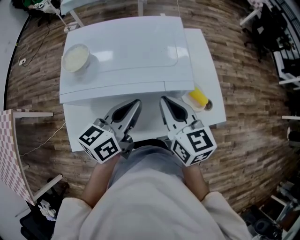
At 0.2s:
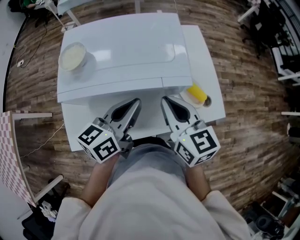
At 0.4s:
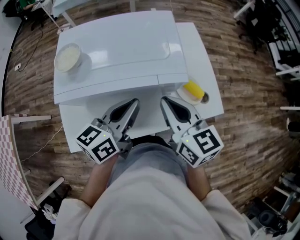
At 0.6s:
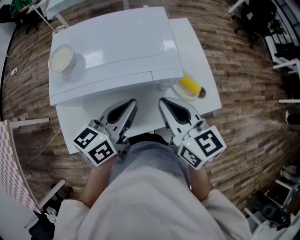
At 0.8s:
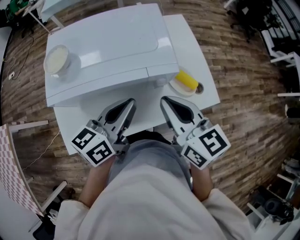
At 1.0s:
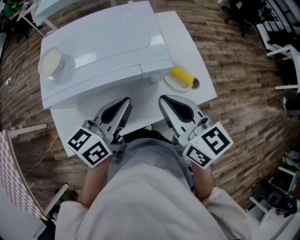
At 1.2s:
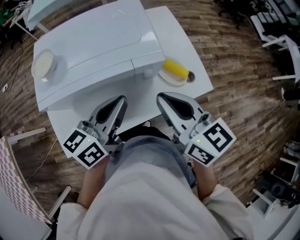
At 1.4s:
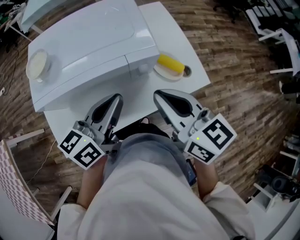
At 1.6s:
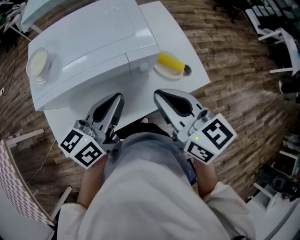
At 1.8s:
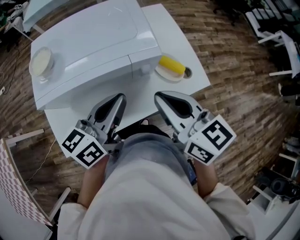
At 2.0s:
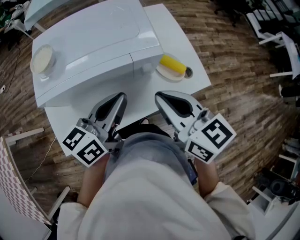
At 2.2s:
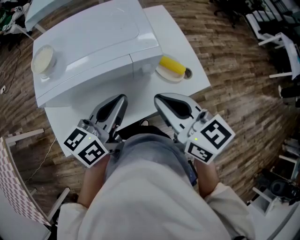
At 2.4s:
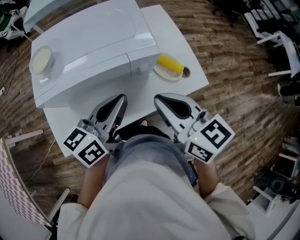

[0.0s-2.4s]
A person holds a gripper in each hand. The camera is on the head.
0.0s to 1.2s: The left gripper moves about 5 cm; the right gripper moves backward and to the right, approximately 10 cm.
1.2s to 2.4s: The grippers stay close to where they were, moving slightly.

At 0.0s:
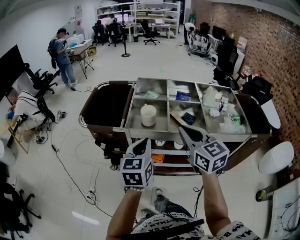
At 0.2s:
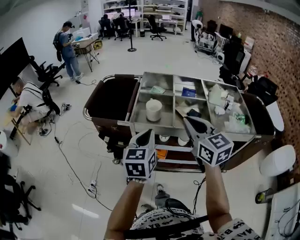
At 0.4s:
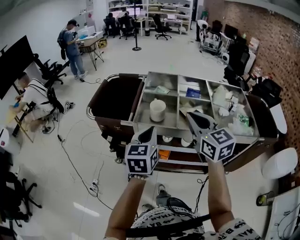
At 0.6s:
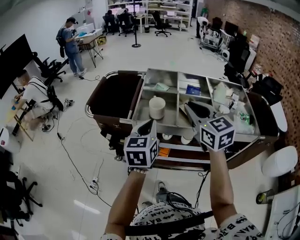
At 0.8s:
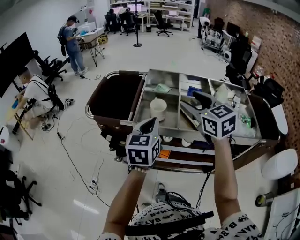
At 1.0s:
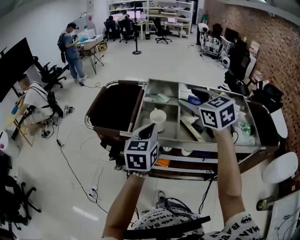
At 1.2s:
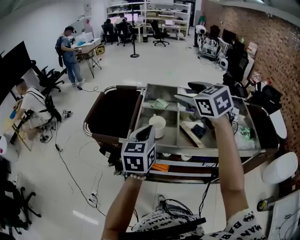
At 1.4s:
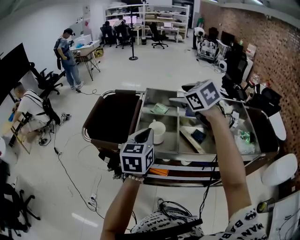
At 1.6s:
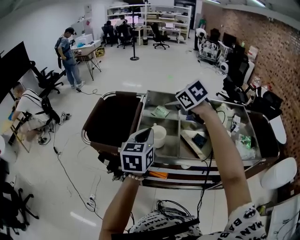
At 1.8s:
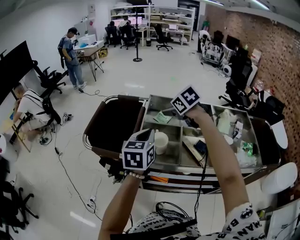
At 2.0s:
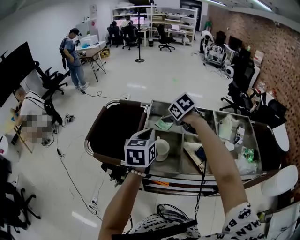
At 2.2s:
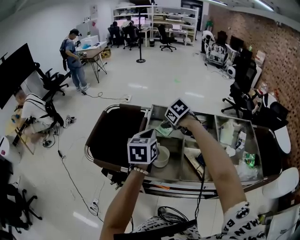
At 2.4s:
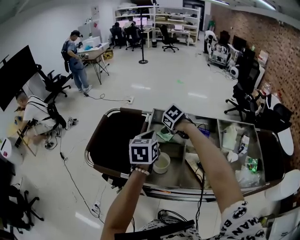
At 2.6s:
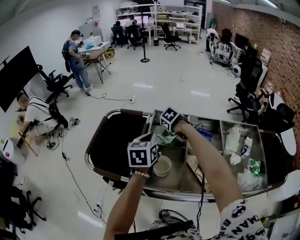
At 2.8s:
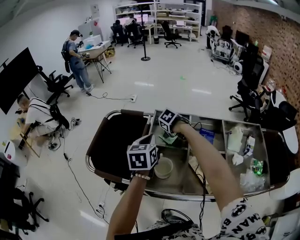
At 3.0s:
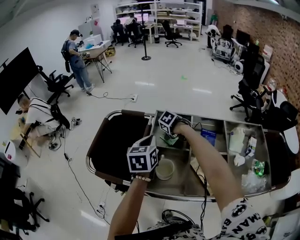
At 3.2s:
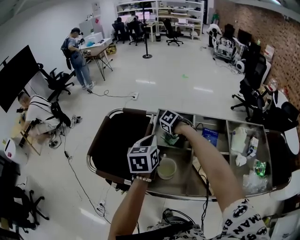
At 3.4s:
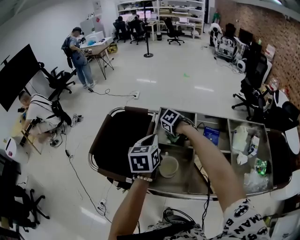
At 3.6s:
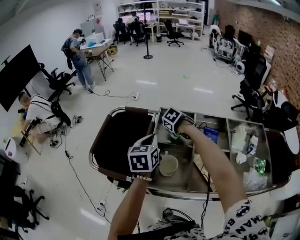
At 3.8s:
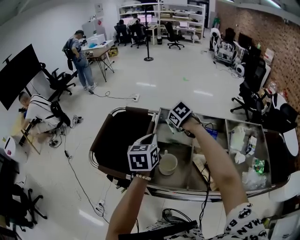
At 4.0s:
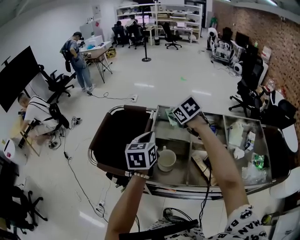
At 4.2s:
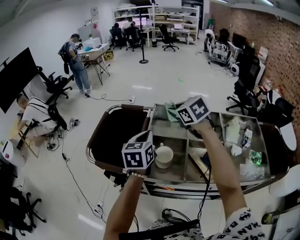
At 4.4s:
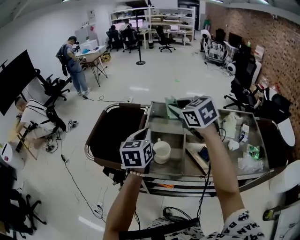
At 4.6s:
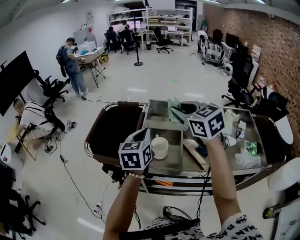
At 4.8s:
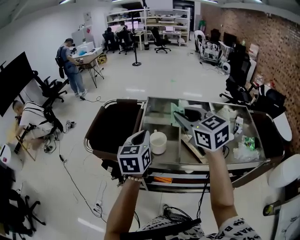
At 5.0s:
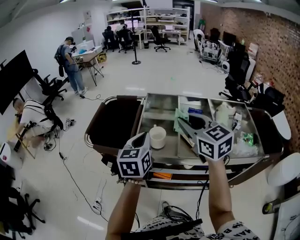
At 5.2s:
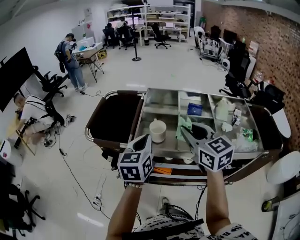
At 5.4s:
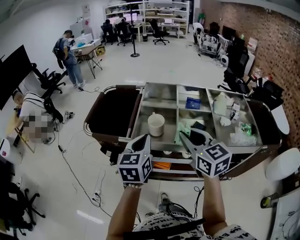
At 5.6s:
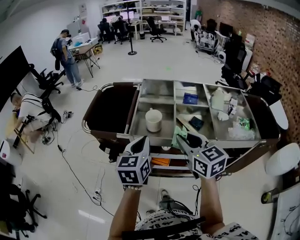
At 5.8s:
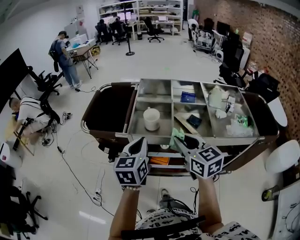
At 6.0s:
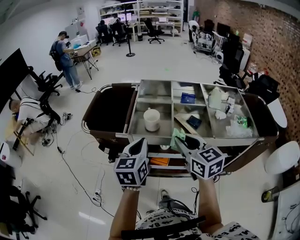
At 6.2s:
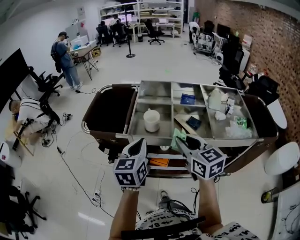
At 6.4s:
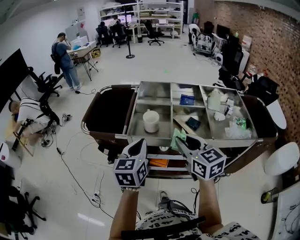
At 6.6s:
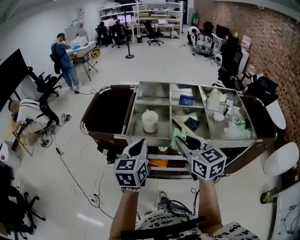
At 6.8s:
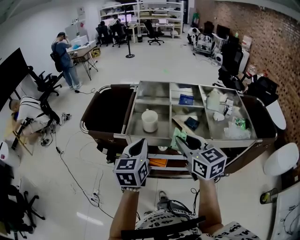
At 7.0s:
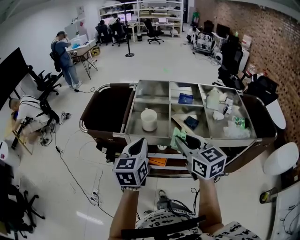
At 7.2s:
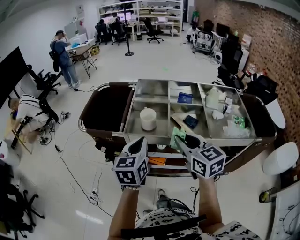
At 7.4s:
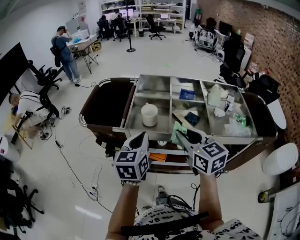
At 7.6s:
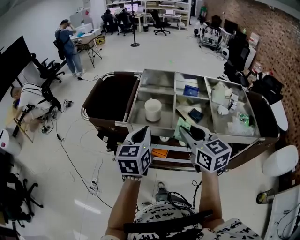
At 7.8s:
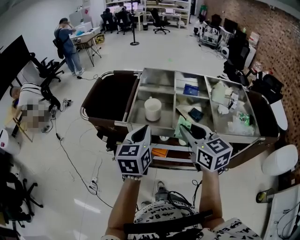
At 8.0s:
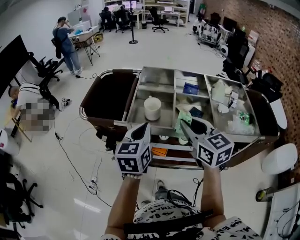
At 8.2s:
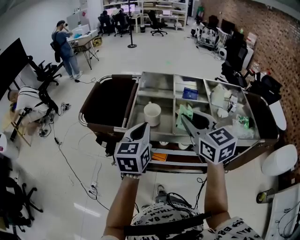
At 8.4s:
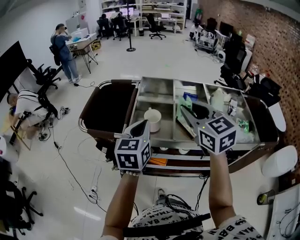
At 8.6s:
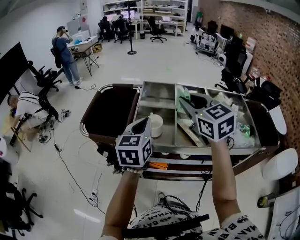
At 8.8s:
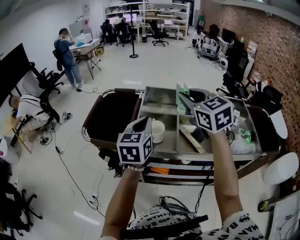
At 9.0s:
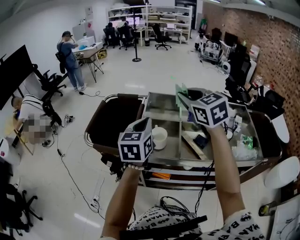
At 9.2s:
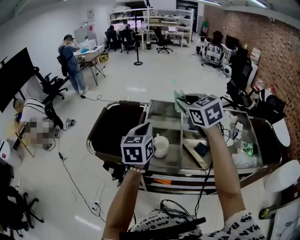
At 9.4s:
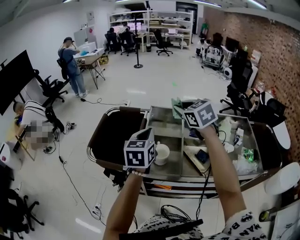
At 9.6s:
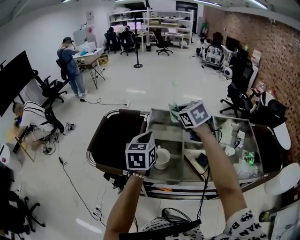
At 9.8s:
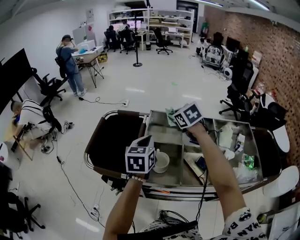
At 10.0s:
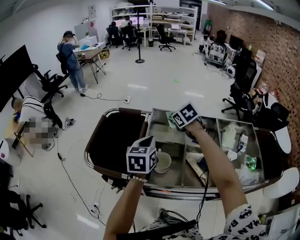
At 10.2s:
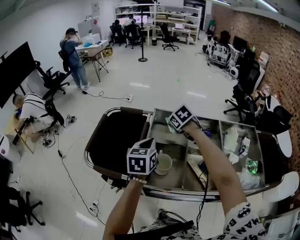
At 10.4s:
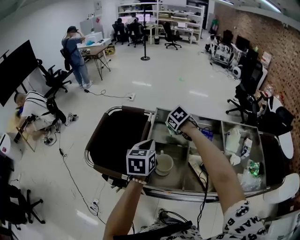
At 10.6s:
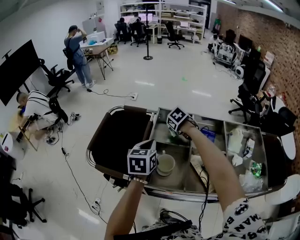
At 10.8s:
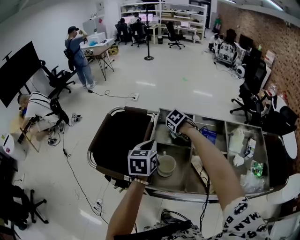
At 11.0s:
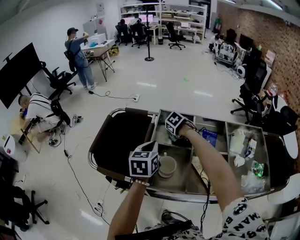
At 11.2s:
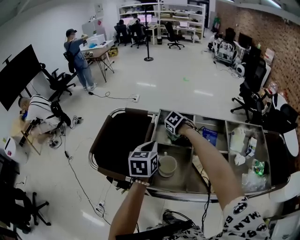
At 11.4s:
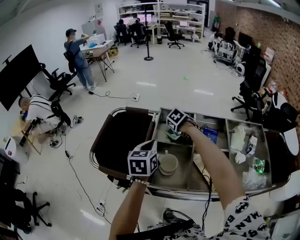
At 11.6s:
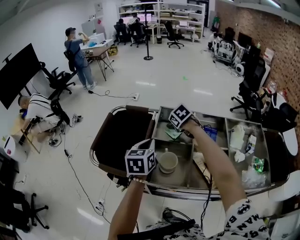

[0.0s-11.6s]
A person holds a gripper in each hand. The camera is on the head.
0.0s to 1.4s: The right gripper travels forward by approximately 25 cm, changes its angle by about 30 degrees, and opens, while the left gripper travels forward by some 15 cm.
1.4s to 2.8s: The left gripper changes place by roughly 15 cm, while the right gripper travels downward by about 25 cm, and tilts its fingers some 40 degrees downward.
2.8s to 4.4s: The right gripper travels upward by approximately 25 cm, points its fingers some 50 degrees further upward, and closes up; the left gripper changes place by about 5 cm.
4.4s to 5.8s: Both grippers move backward, roughly 25 cm. The right gripper turns by approximately 20 degrees.
5.8s to 7.2s: There are only small adjustments of the grippers.
7.2s to 8.8s: The left gripper goes about 15 cm forward and upward. The right gripper is displaced forward and upward by approximately 20 cm.
8.8s to 10.2s: The right gripper heads forward and downward, covering about 30 cm, and tilts its fingers roughly 40 degrees downward; the left gripper moves forward and downward, about 10 cm.
10.2s to 11.6s: The right gripper opens up.

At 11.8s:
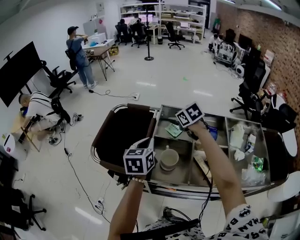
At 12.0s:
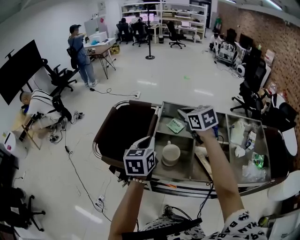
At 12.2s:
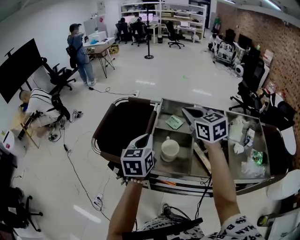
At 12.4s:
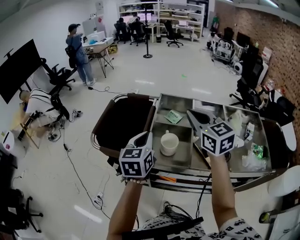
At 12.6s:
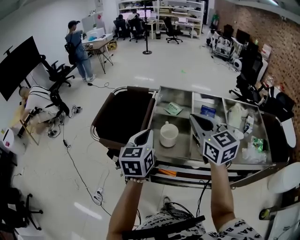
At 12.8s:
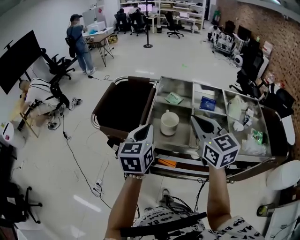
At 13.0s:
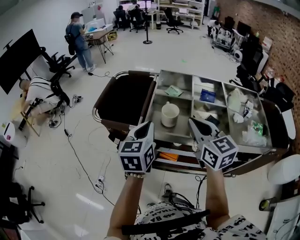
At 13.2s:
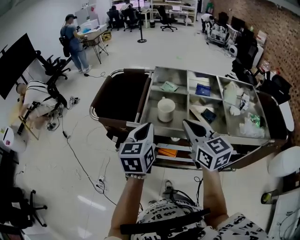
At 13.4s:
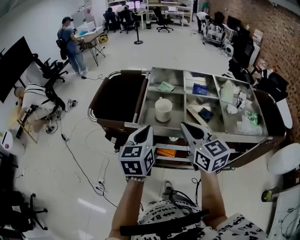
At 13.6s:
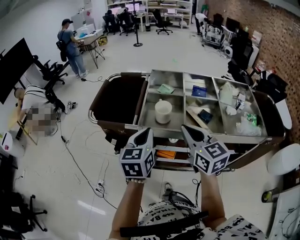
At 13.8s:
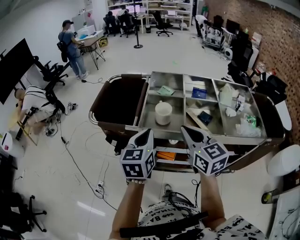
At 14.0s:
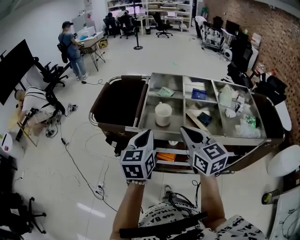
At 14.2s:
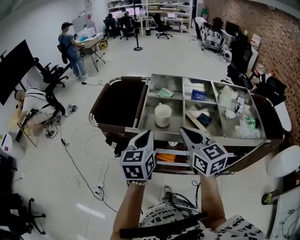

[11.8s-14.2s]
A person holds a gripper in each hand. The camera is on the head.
11.8s to 13.0s: The left gripper moves backward, some 15 cm. The right gripper heads backward, covering approximately 30 cm, points its fingers roughly 40 degrees further upward, and closes its fingers.
13.0s to 14.2s: There are only small adjustments of the grippers.

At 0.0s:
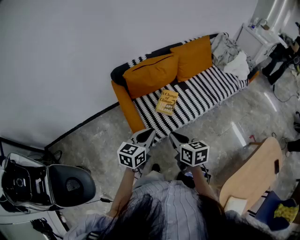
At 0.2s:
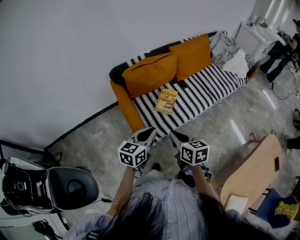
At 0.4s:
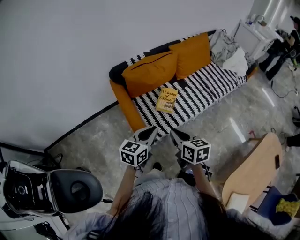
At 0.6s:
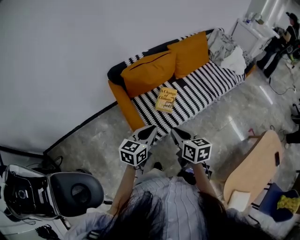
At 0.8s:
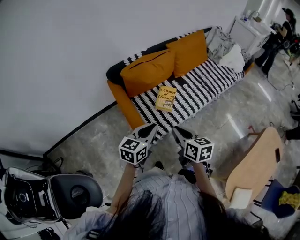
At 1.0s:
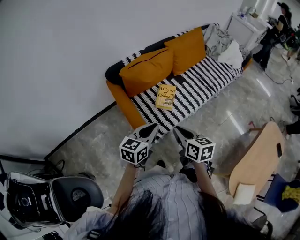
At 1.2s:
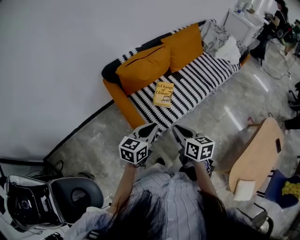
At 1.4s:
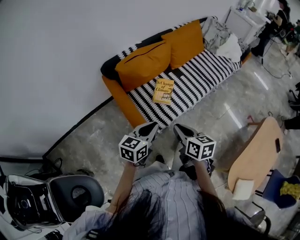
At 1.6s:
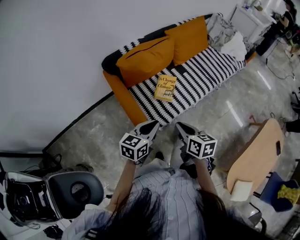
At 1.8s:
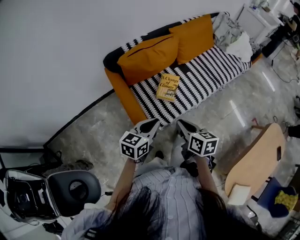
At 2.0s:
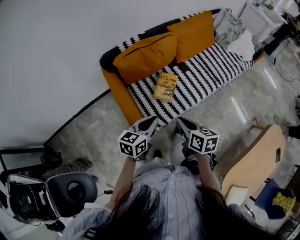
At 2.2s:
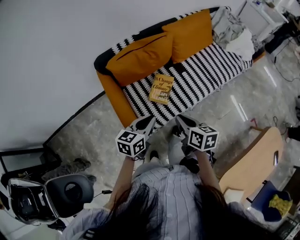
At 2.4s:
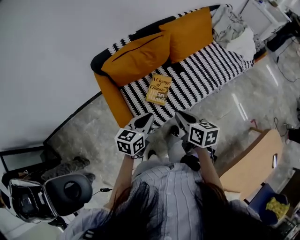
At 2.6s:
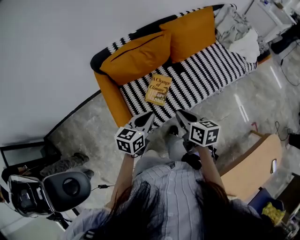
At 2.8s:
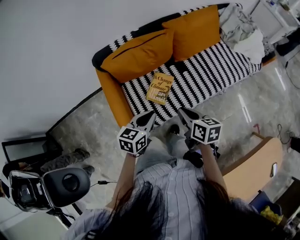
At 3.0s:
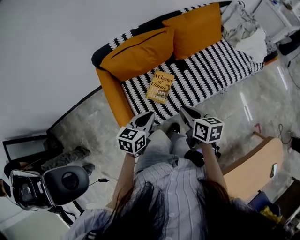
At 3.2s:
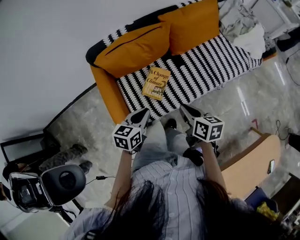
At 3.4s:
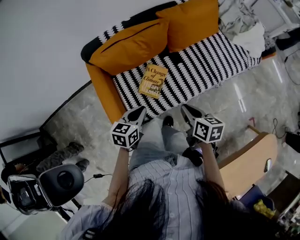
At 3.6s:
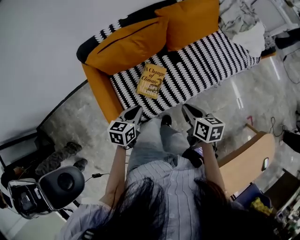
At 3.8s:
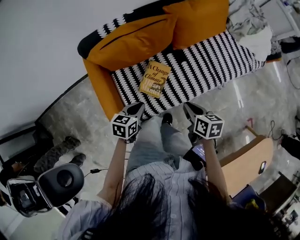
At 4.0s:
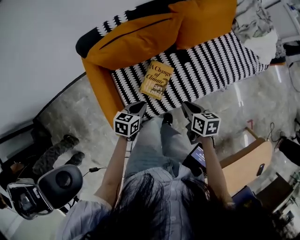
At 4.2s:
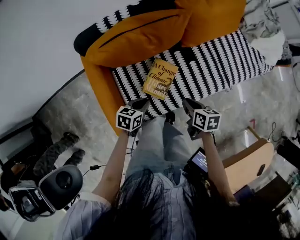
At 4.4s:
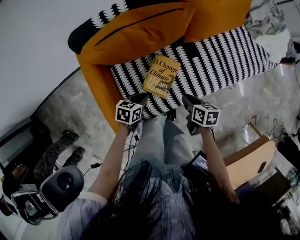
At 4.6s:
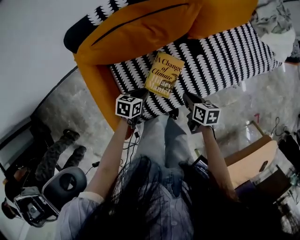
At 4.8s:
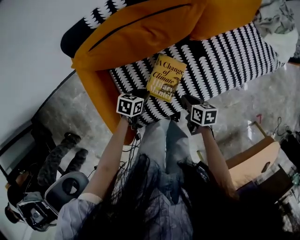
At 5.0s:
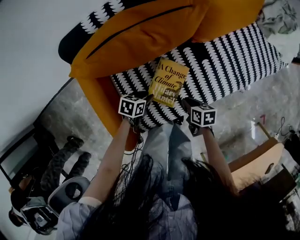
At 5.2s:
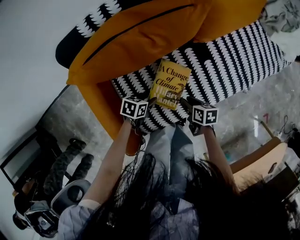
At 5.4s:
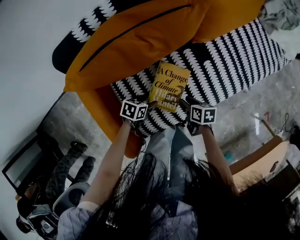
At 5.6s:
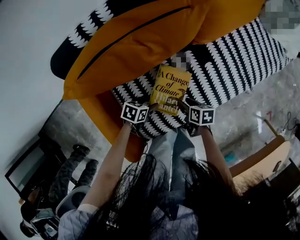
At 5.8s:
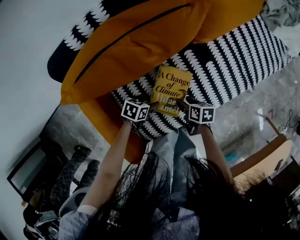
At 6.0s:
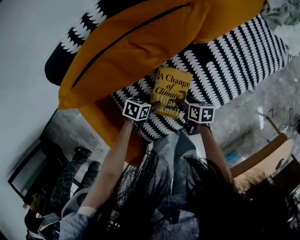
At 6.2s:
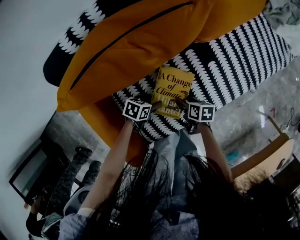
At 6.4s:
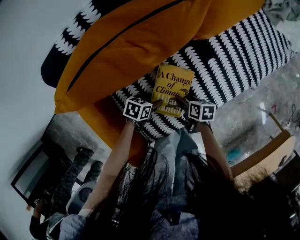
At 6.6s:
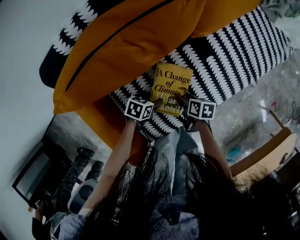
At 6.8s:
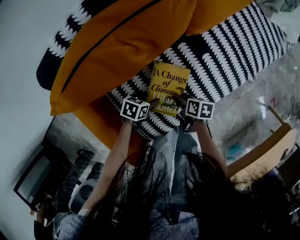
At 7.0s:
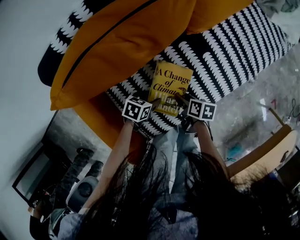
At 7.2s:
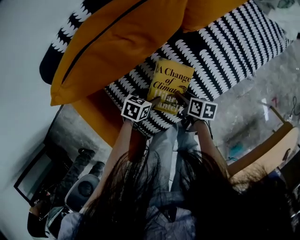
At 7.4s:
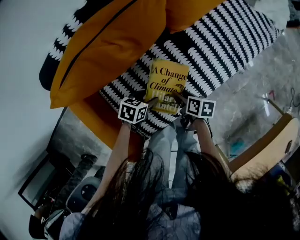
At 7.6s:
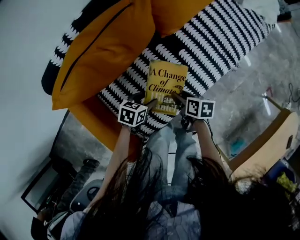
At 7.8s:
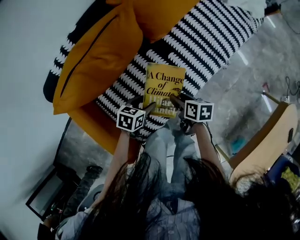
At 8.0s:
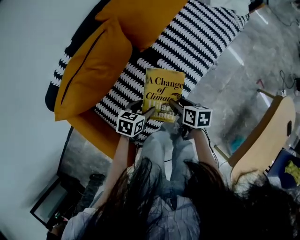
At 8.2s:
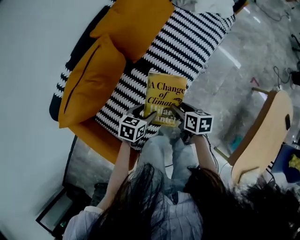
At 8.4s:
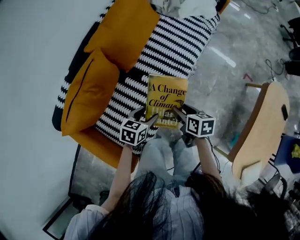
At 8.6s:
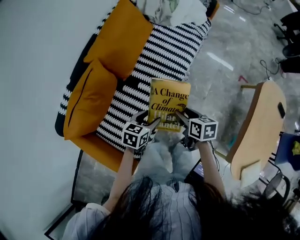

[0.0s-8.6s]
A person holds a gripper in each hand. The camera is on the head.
0.0s to 1.4s: The grippers stay close to where they were, moving slightly.
1.4s to 2.8s: Both grippers move forward and to the right, roughly 25 cm.
2.8s to 4.4s: The two grippers go approximately 30 cm downward and forward. The left gripper rotates approximately 30 degrees; the right gripper swivels some 20 degrees.
4.4s to 5.8s: Both grippers travel together downward, about 20 cm. The right gripper opens up; the left gripper rotates roughly 20 degrees, and opens its fingers.
5.8s to 7.2s: The grippers stay close to where they were, moving slightly.
7.2s to 8.6s: Both grippers travel together upward and to the right, approximately 40 cm. The right gripper turns by some 20 degrees, while the left gripper rotates approximately 20 degrees.
